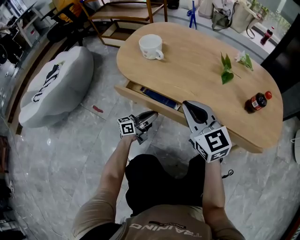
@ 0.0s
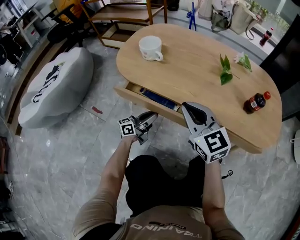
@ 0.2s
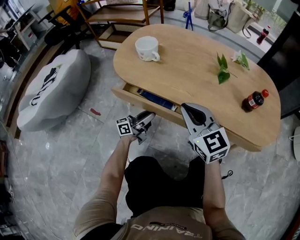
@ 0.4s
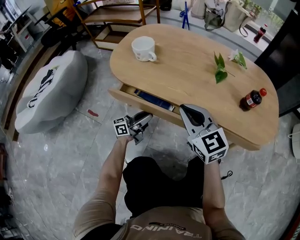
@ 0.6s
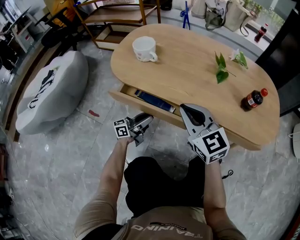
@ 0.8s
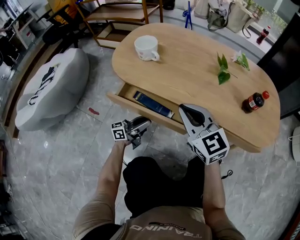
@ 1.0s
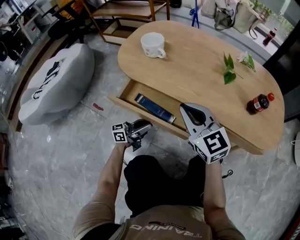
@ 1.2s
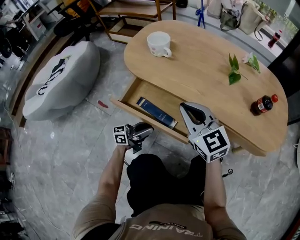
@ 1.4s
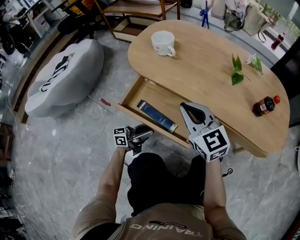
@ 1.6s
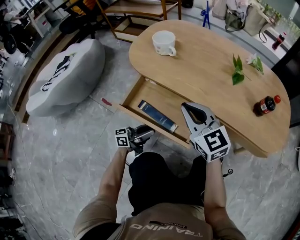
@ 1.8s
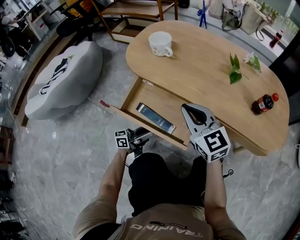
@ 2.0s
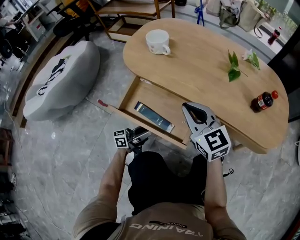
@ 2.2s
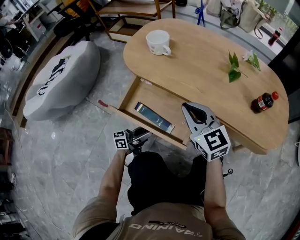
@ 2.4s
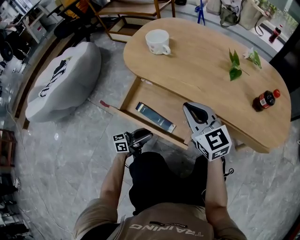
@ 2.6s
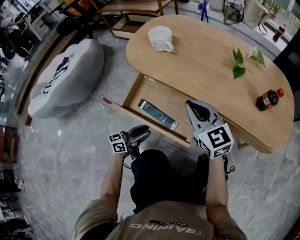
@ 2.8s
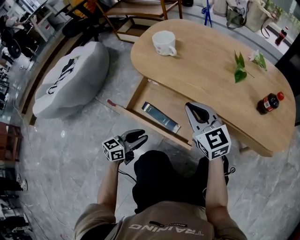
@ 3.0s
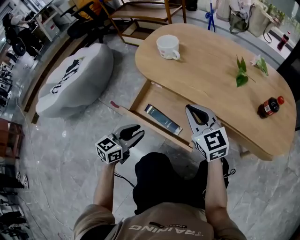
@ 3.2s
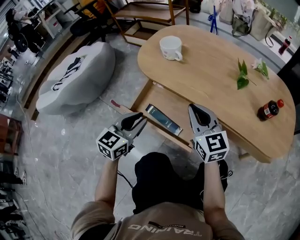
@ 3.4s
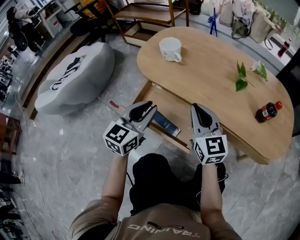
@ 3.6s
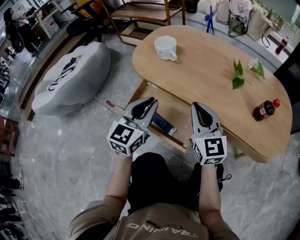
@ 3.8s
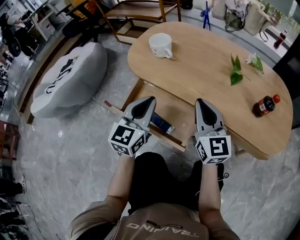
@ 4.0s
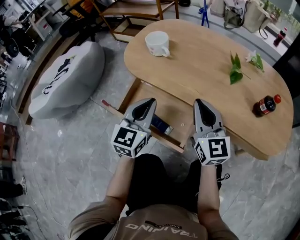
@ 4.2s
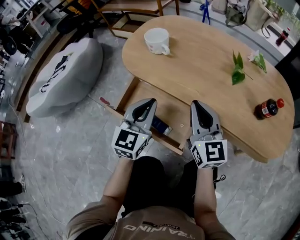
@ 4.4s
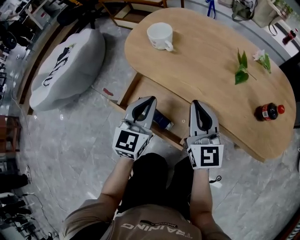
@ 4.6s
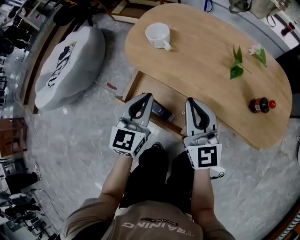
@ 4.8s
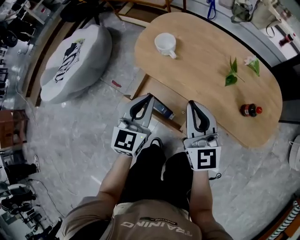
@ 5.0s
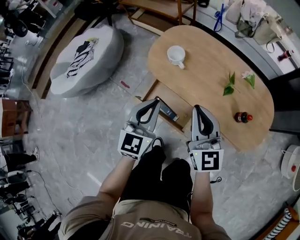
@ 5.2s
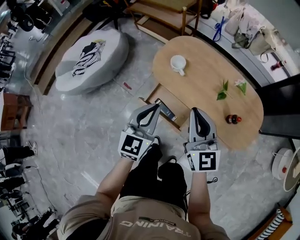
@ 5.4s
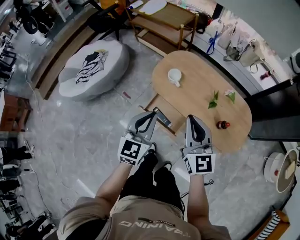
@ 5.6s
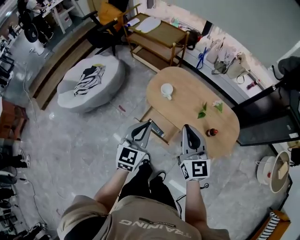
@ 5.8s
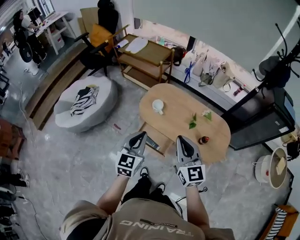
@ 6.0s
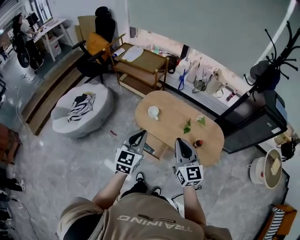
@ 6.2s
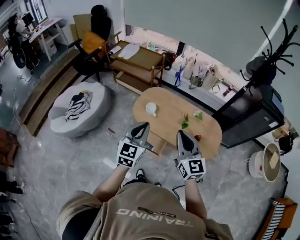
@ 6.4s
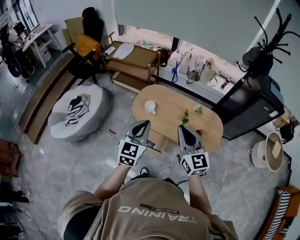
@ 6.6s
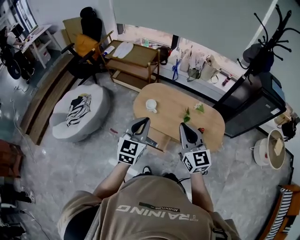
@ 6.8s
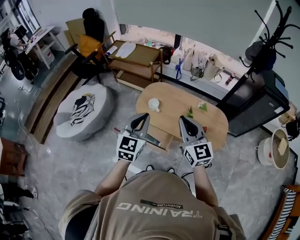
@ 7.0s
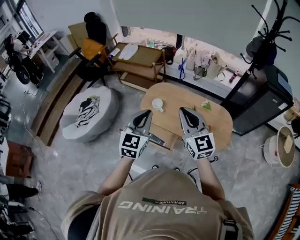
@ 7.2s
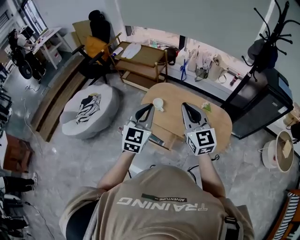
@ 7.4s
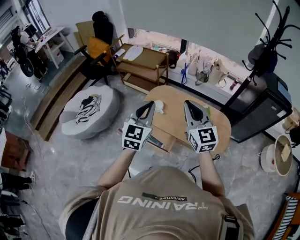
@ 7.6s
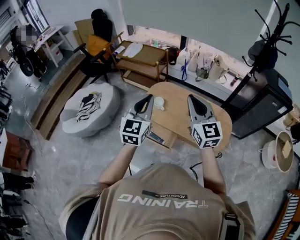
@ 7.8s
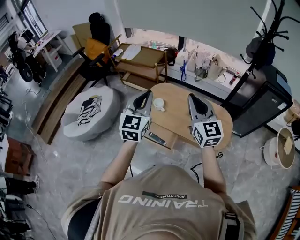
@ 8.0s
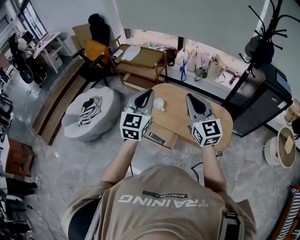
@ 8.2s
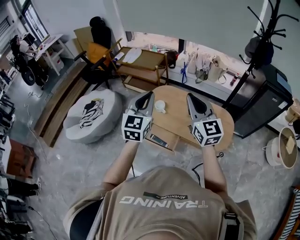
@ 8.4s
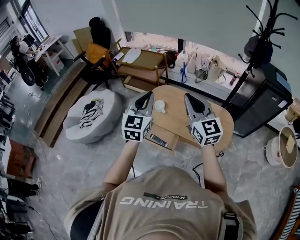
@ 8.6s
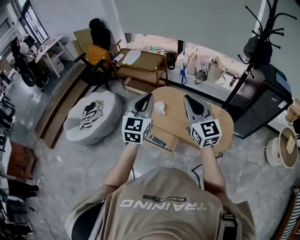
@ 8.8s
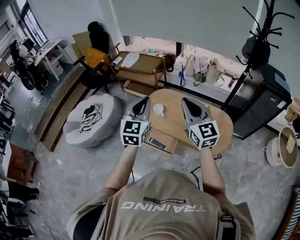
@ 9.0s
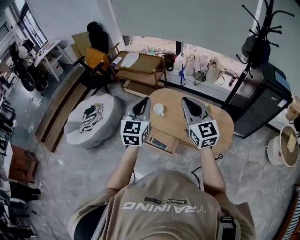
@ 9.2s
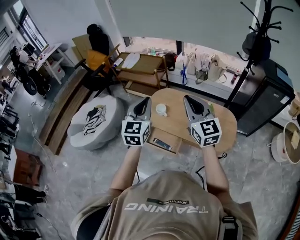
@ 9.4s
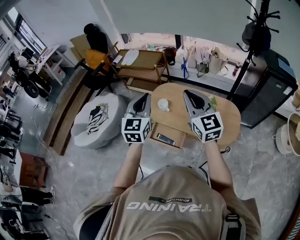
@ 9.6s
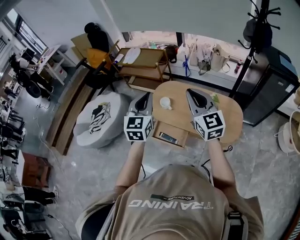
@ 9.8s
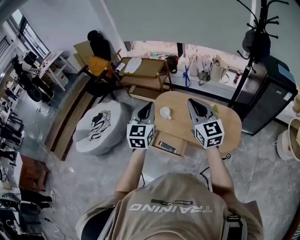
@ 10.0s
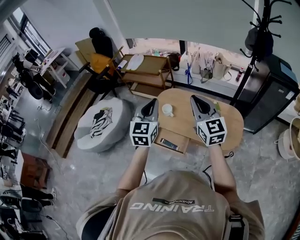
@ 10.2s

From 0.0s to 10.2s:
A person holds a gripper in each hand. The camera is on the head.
From 0.0s to 1.4s: The left gripper heads backward, covering approximately 10 cm, and opens.
From 1.4s to 3.0s: The left gripper travels backward by approximately 5 cm, and rotates some 30 degrees.
From 3.0s to 4.4s: The right gripper is displaced to the right by approximately 5 cm, and swivels roughly 20 degrees, while the left gripper travels upward, forward and to the right by approximately 20 cm, turns by some 40 degrees, and closes up.
From 4.4s to 5.8s: The grippers both shift upward by approximately 50 cm.
From 5.8s to 7.2s: Both grippers move upward, approximately 10 cm.
From 7.2s to 8.8s: The left gripper shifts about 5 cm upward.
From 8.8s to 10.2s: The grippers stay close to where they were, moving slightly.

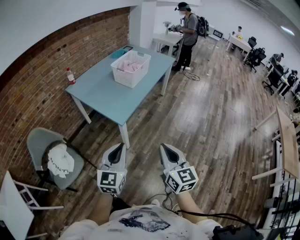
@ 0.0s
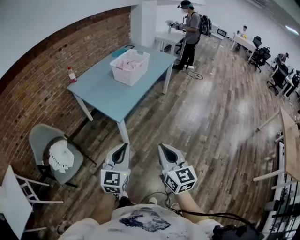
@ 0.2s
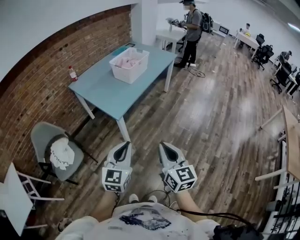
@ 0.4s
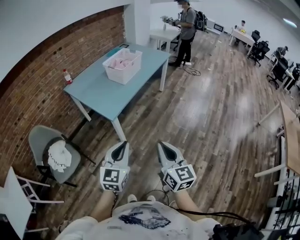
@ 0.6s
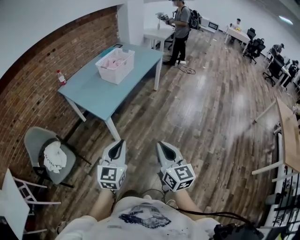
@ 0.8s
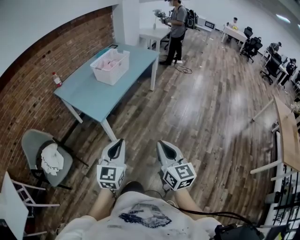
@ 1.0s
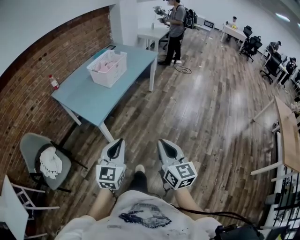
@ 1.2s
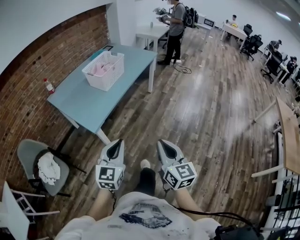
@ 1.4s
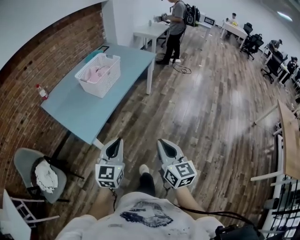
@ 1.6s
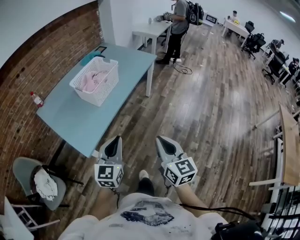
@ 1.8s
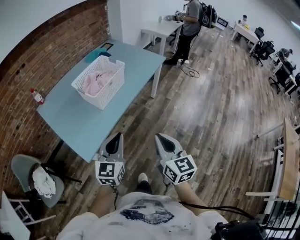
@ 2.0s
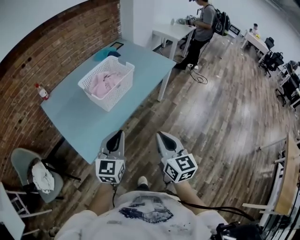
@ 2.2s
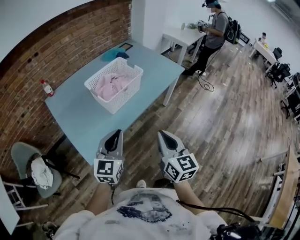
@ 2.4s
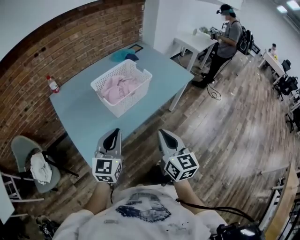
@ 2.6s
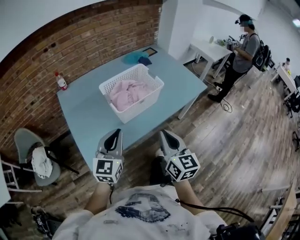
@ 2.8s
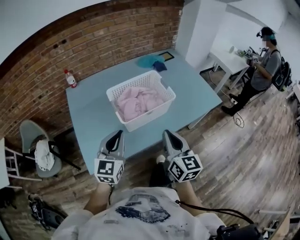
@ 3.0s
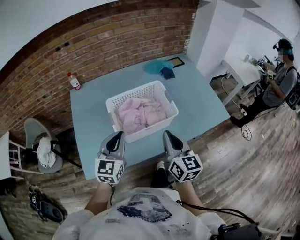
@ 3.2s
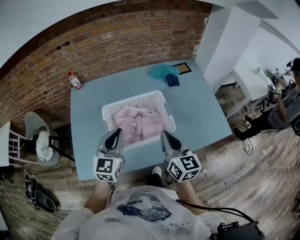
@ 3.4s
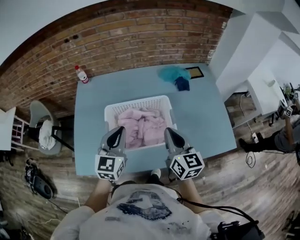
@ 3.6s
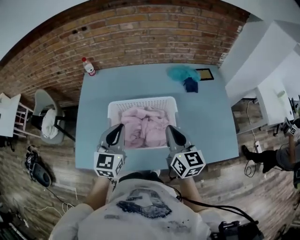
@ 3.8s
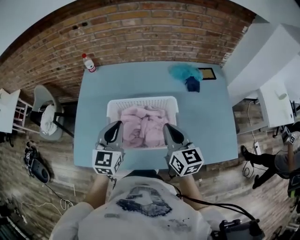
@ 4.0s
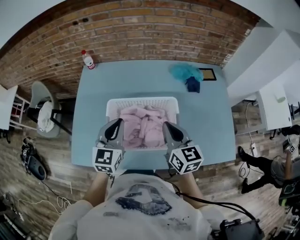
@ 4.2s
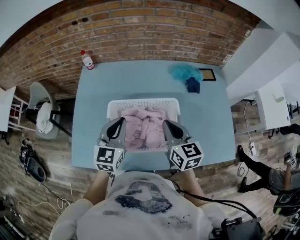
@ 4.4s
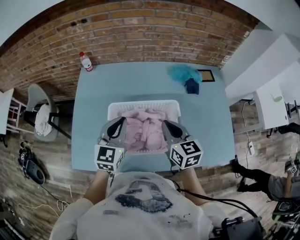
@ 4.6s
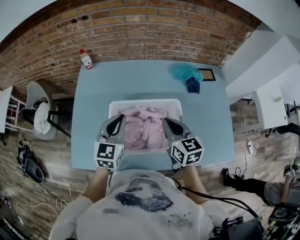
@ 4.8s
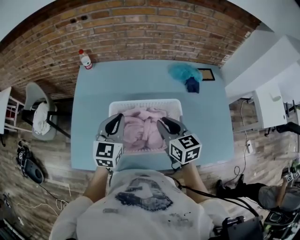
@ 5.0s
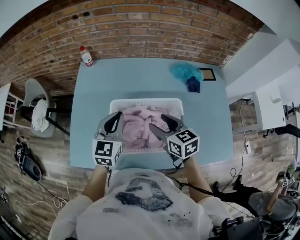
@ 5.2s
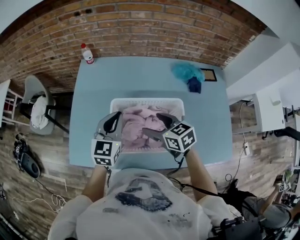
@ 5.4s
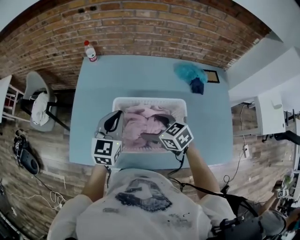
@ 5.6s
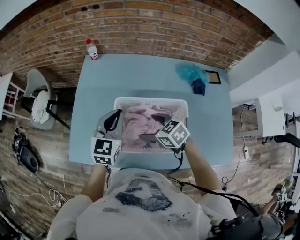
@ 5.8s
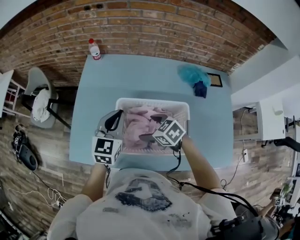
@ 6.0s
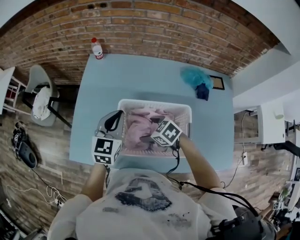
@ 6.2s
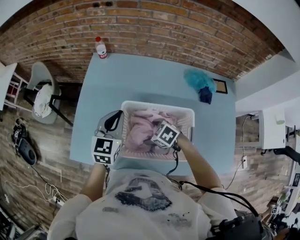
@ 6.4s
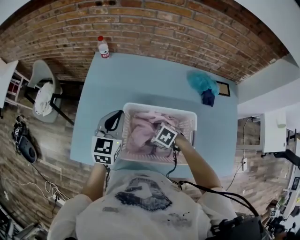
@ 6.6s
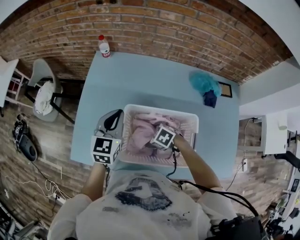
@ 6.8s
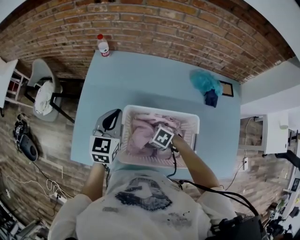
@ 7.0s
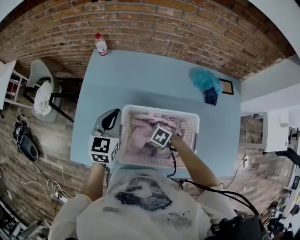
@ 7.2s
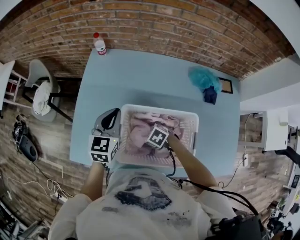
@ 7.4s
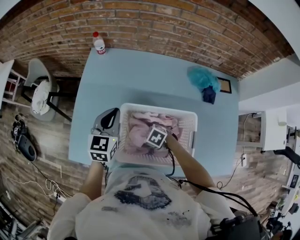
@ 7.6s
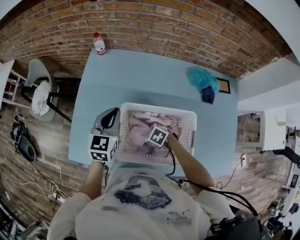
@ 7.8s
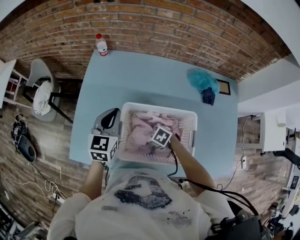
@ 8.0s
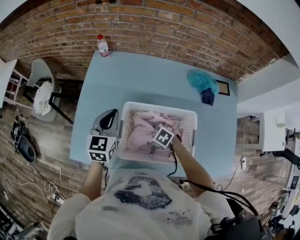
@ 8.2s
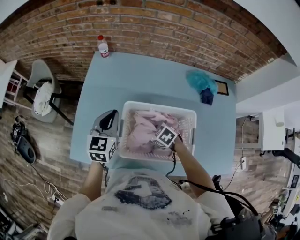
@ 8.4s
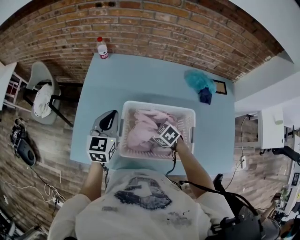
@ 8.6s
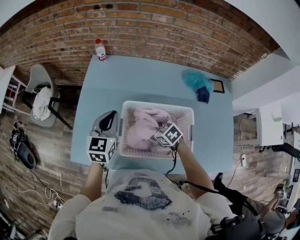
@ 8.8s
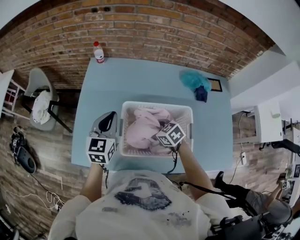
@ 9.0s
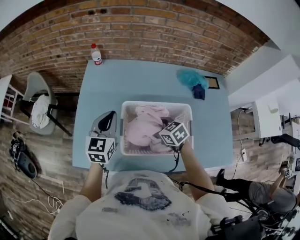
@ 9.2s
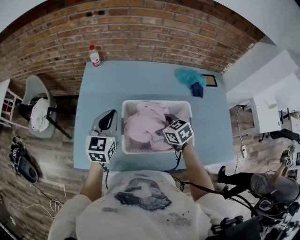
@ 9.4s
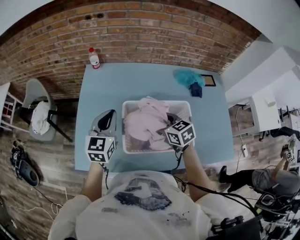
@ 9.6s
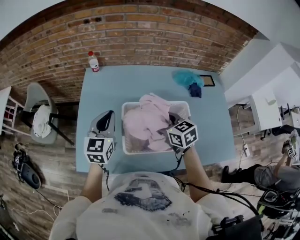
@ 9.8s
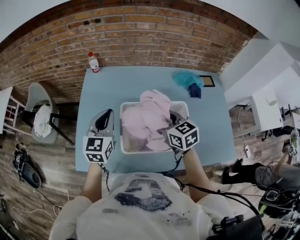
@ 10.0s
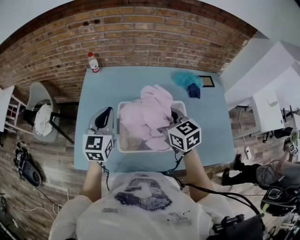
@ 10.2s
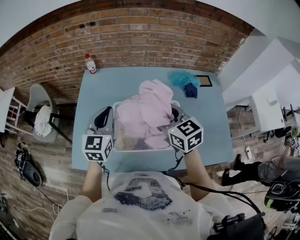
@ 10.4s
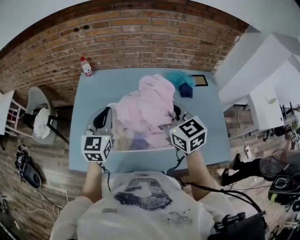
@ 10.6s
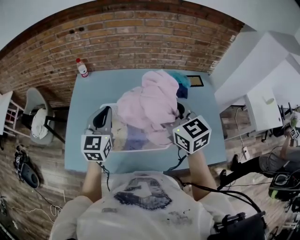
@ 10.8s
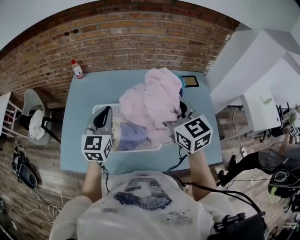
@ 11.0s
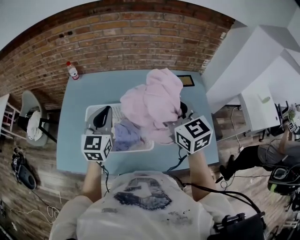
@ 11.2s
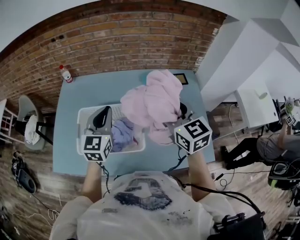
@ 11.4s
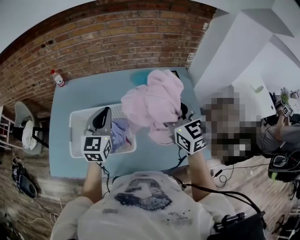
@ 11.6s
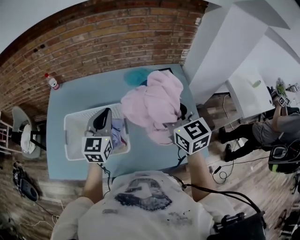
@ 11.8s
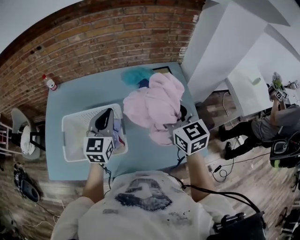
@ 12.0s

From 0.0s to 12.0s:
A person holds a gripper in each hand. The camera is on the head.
From 0.0s to 1.6s: The two grippers go some 30 cm to the right and forward.
From 1.6s to 3.0s: The pair of grippers is taken about 50 cm. The right gripper changes its angle by approximately 30 degrees; the left gripper rotates about 30 degrees.
From 3.0s to 4.4s: The left gripper ends up approximately 25 cm from where it was, and swivels about 20 degrees; the right gripper changes place by about 30 cm, and swivels approximately 30 degrees.
From 4.4s to 6.0s: The right gripper moves roughly 20 cm, tilts its fingers approximately 30 degrees downward, and opens, while the left gripper shifts by approximately 5 cm.
From 6.0s to 7.6s: The right gripper is displaced downward by roughly 15 cm, and rotates approximately 20 degrees. Meanwhile the left gripper goes approximately 5 cm forward.
From 7.6s to 9.0s: The left gripper changes place by roughly 5 cm, while the right gripper heads upward, covering approximately 10 cm, rotates roughly 30 degrees, and closes.
From 9.0s to 10.4s: The right gripper is displaced upward by roughly 20 cm, and rotates some 40 degrees, while the left gripper shifts about 5 cm upward.
From 10.4s to 12.0s: The grippers both shift to the right by roughly 30 cm.

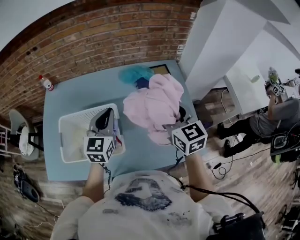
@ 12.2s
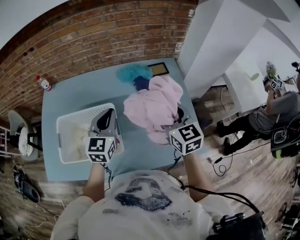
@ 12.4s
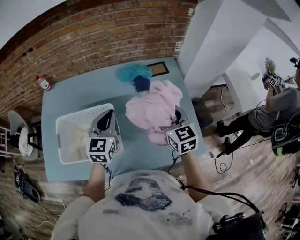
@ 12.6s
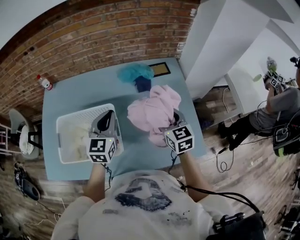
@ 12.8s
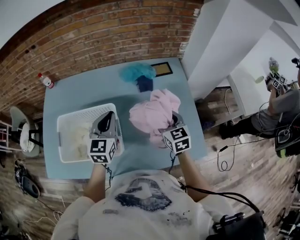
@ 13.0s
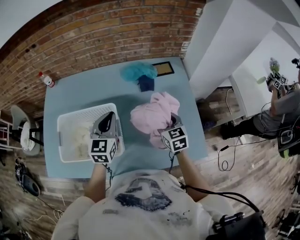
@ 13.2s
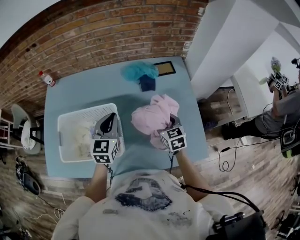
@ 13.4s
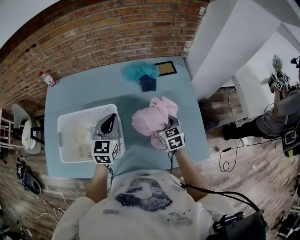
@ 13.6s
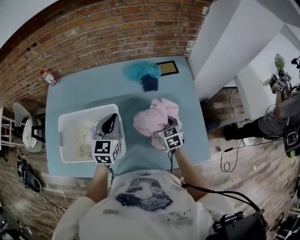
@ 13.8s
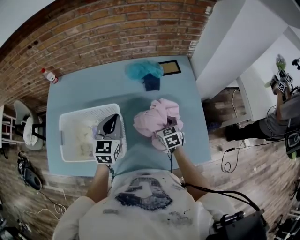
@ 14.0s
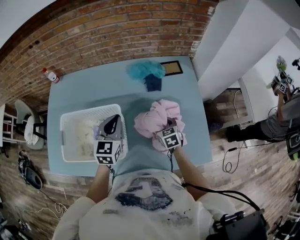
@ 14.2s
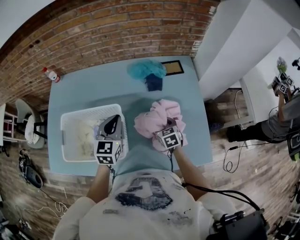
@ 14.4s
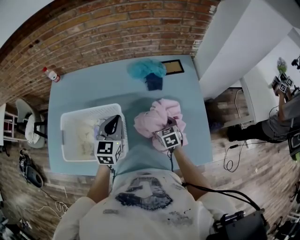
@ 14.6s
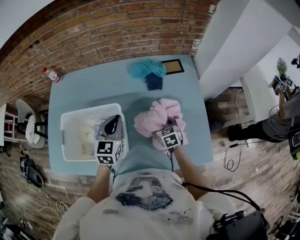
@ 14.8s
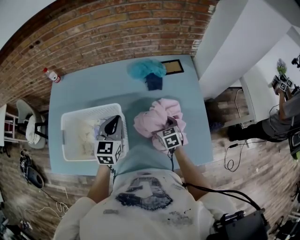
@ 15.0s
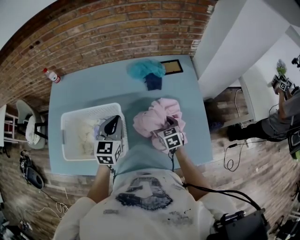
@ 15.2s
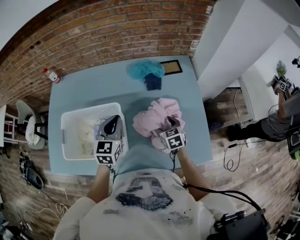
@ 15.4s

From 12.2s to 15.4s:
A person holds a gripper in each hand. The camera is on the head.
From 12.2s to 13.8s: The left gripper shifts some 10 cm downward, while the right gripper is displaced downward by about 25 cm, and swivels about 20 degrees.
From 13.8s to 15.4s: The grippers stay close to where they were, moving slightly.
